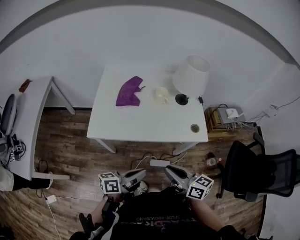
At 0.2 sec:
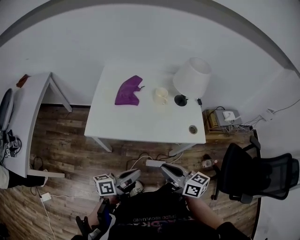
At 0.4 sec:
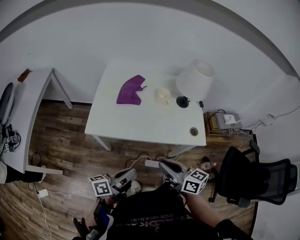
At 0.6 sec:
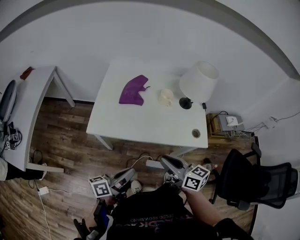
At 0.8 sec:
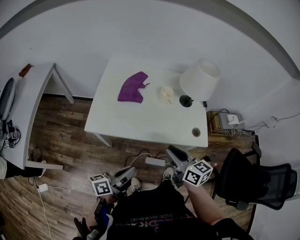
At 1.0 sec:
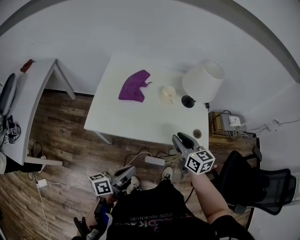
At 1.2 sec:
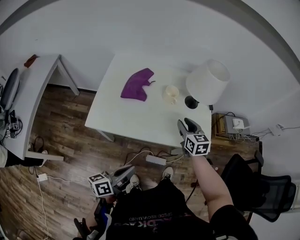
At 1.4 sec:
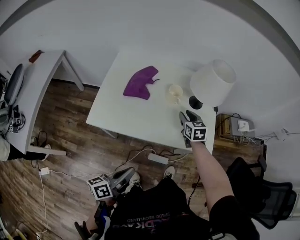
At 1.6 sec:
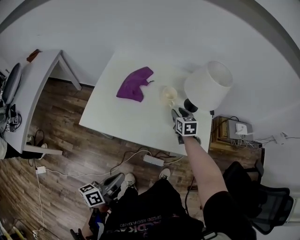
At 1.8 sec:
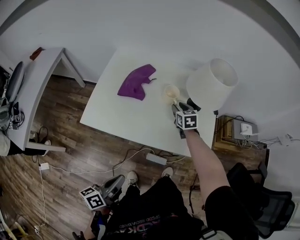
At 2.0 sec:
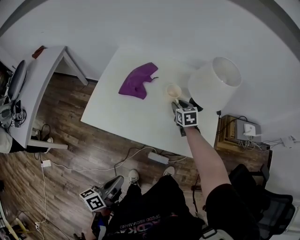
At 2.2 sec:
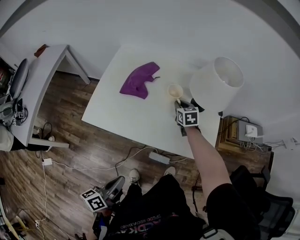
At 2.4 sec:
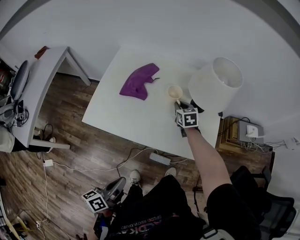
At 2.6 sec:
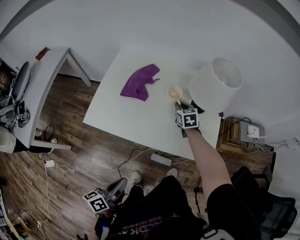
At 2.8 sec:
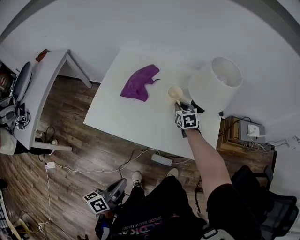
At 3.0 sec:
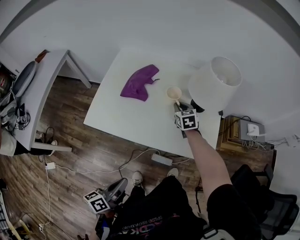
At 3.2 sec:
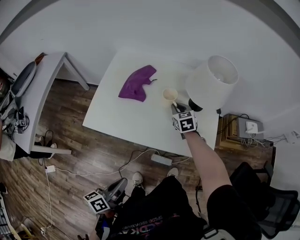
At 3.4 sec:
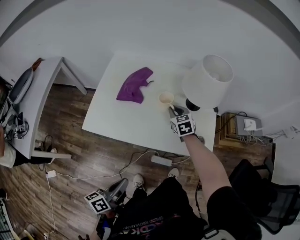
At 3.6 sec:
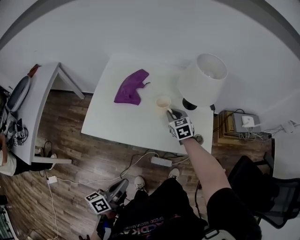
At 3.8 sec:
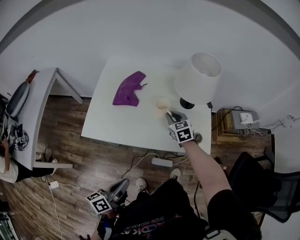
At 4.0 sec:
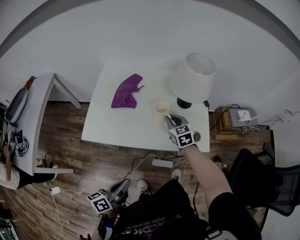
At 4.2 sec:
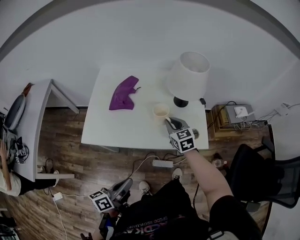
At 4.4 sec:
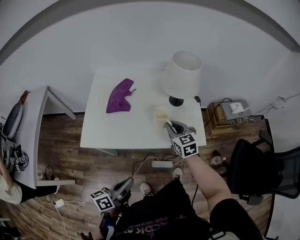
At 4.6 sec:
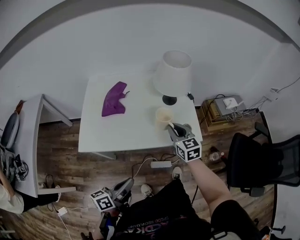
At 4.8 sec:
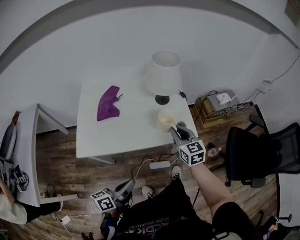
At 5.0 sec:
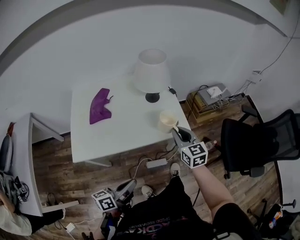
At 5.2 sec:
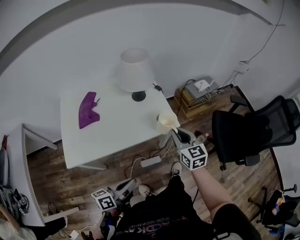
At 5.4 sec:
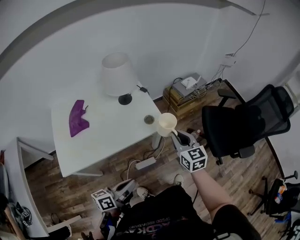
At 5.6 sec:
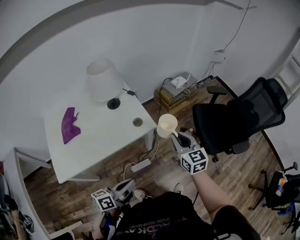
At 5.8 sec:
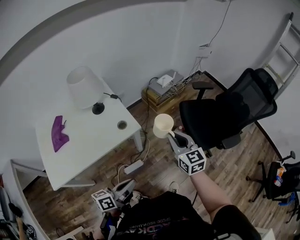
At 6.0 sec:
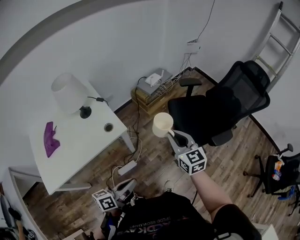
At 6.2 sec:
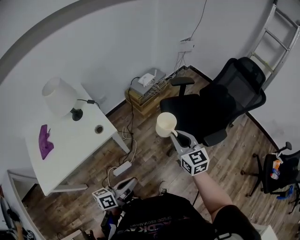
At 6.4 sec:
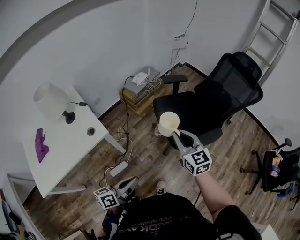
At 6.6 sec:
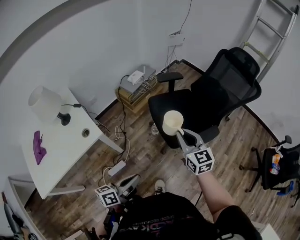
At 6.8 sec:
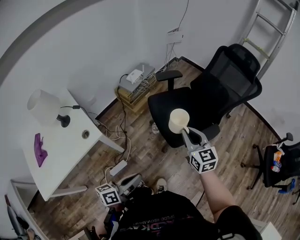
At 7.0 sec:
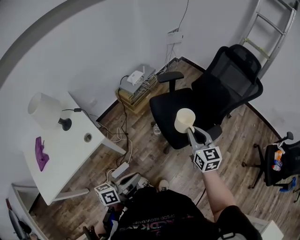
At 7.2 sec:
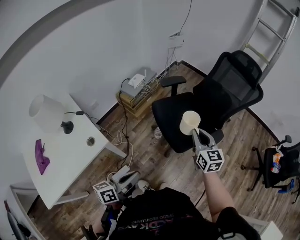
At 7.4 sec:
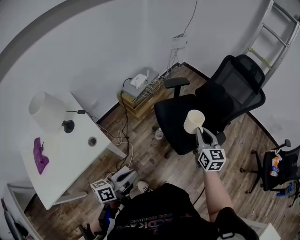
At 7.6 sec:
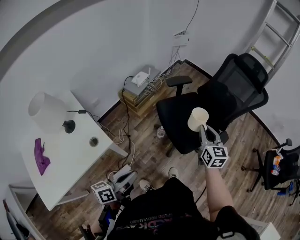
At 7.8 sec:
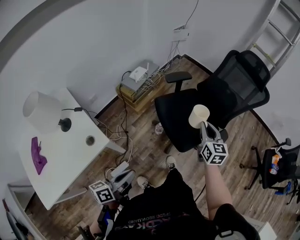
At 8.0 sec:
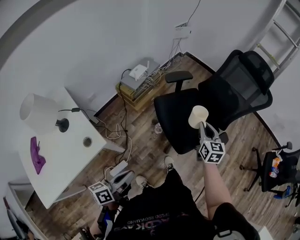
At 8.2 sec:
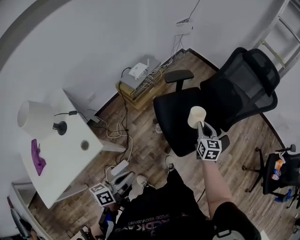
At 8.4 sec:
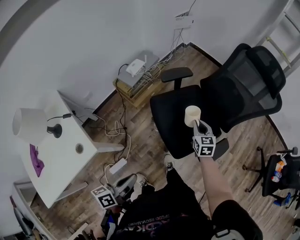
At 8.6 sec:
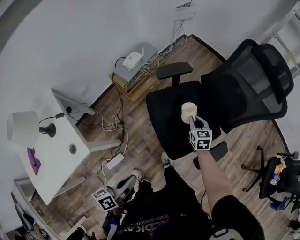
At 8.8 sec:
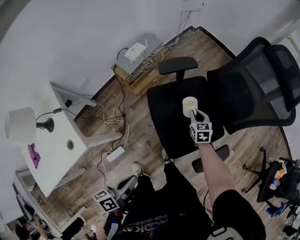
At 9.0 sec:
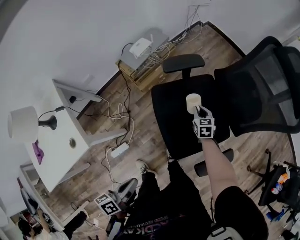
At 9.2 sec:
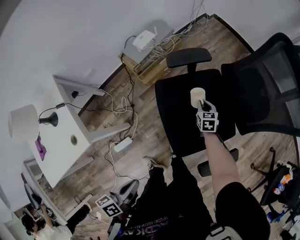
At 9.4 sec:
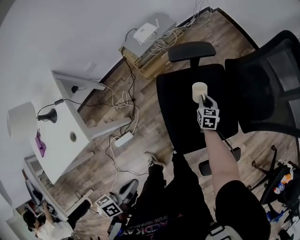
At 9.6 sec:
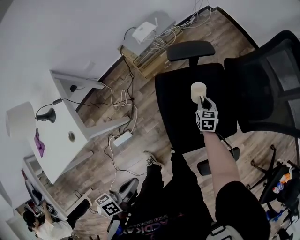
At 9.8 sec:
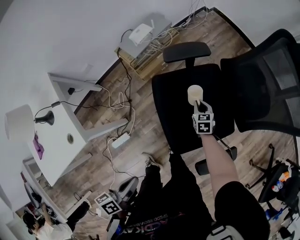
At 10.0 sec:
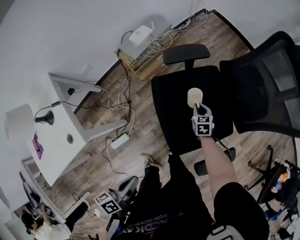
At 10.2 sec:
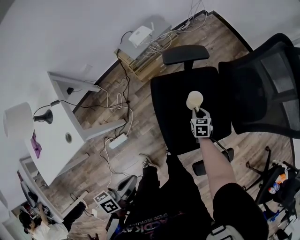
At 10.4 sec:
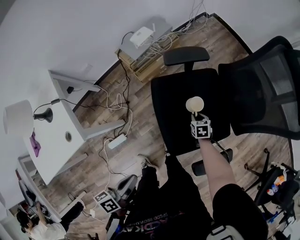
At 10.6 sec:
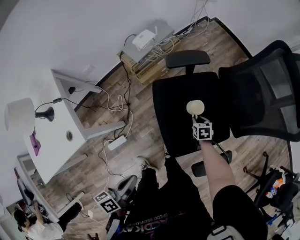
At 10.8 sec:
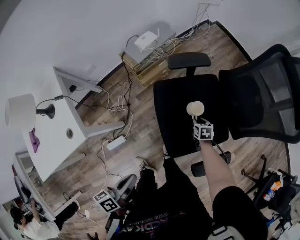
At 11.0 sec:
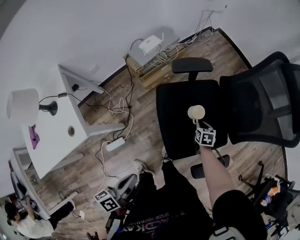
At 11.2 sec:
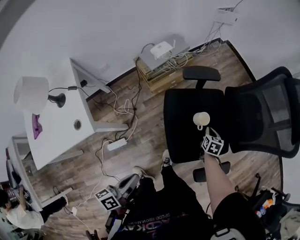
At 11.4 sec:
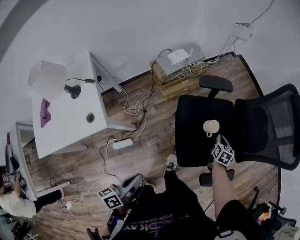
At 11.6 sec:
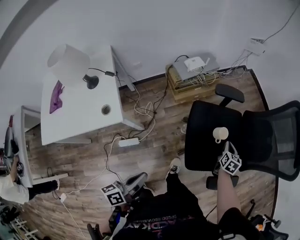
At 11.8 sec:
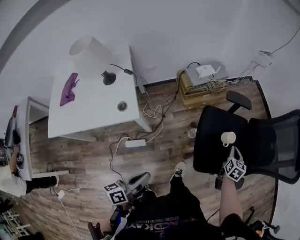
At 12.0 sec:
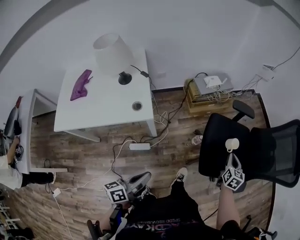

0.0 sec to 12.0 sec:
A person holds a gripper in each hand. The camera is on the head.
0.0 sec to 1.6 sec: The left gripper changes its angle by approximately 30 degrees; the right gripper is displaced forward by approximately 40 cm, rotates about 40 degrees, and opens its fingers.
1.6 sec to 3.0 sec: The right gripper shifts by roughly 5 cm, and closes.
3.0 sec to 4.4 sec: The right gripper travels backward and upward by approximately 20 cm. Meanwhile the left gripper turns by about 20 degrees.
4.4 sec to 6.0 sec: The right gripper changes place by roughly 50 cm, and swivels roughly 40 degrees. The left gripper changes place by approximately 30 cm, and swivels roughly 40 degrees.
6.0 sec to 7.6 sec: The left gripper shifts some 15 cm forward, and travels to the right and back again, about 15 cm each way. The right gripper goes approximately 25 cm to the right and forward, and turns by some 30 degrees.
7.6 sec to 9.0 sec: The left gripper travels forward, to the right and downward by some 20 cm, and rotates approximately 30 degrees. The right gripper moves downward and forward, about 40 cm, and tips its fingers downward by about 30 degrees.
9.0 sec to 10.4 sec: The right gripper shifts approximately 10 cm downward and backward.
10.4 sec to 12.0 sec: The right gripper moves upward, some 25 cm, and turns by some 30 degrees; the left gripper travels backward and to the left by some 20 cm, and changes its angle by about 20 degrees.

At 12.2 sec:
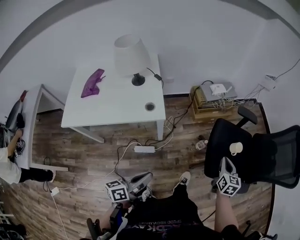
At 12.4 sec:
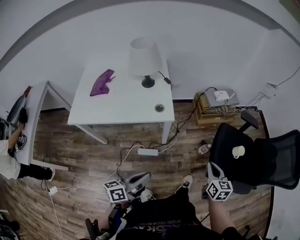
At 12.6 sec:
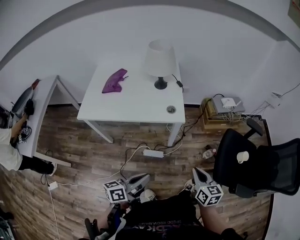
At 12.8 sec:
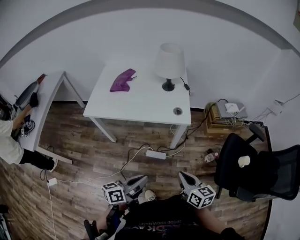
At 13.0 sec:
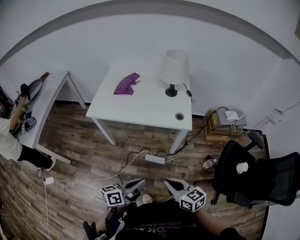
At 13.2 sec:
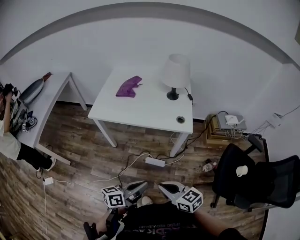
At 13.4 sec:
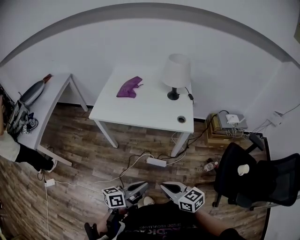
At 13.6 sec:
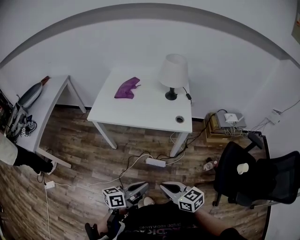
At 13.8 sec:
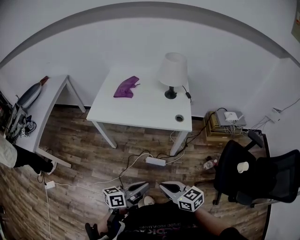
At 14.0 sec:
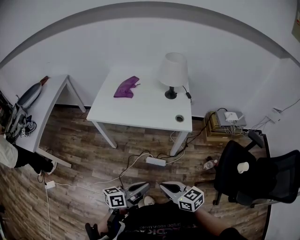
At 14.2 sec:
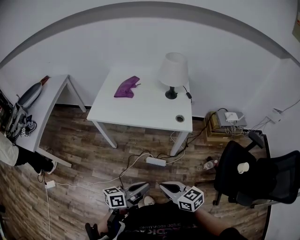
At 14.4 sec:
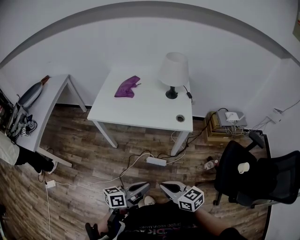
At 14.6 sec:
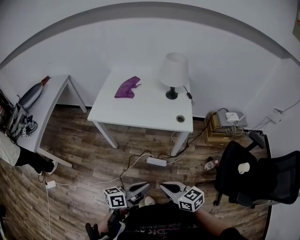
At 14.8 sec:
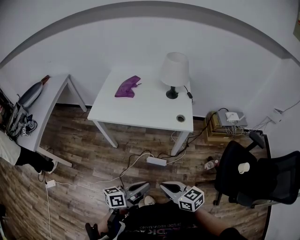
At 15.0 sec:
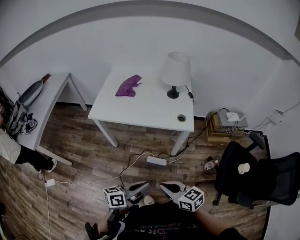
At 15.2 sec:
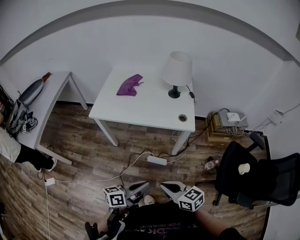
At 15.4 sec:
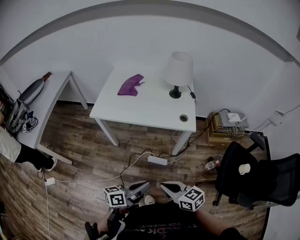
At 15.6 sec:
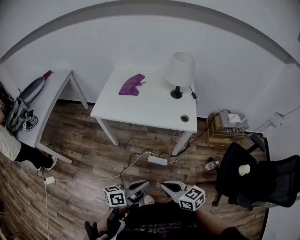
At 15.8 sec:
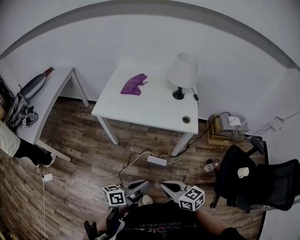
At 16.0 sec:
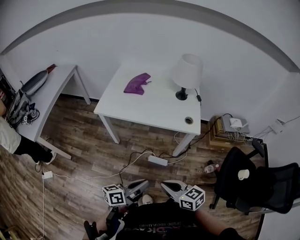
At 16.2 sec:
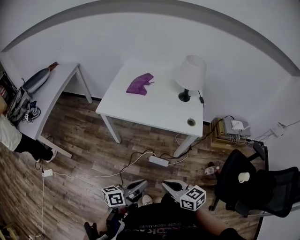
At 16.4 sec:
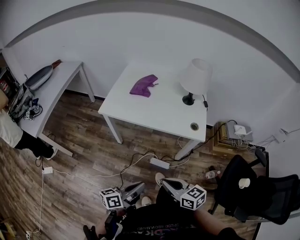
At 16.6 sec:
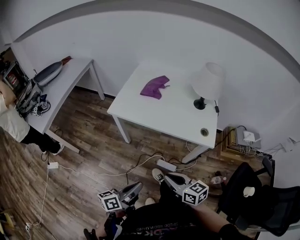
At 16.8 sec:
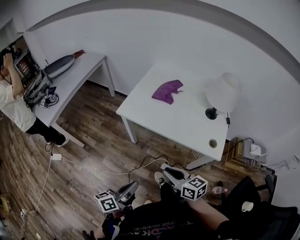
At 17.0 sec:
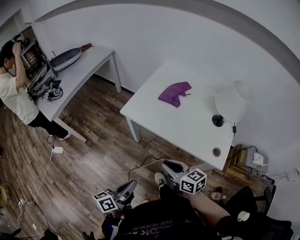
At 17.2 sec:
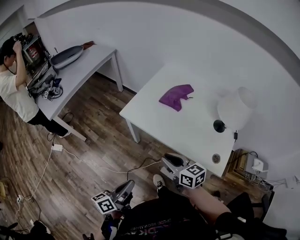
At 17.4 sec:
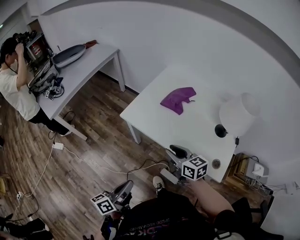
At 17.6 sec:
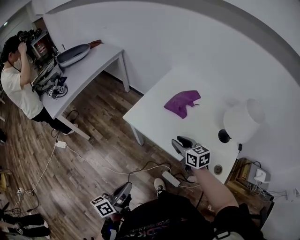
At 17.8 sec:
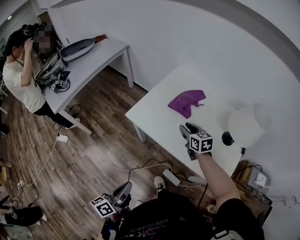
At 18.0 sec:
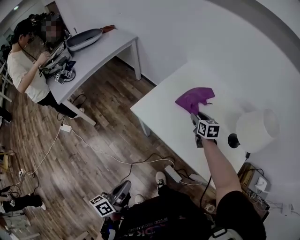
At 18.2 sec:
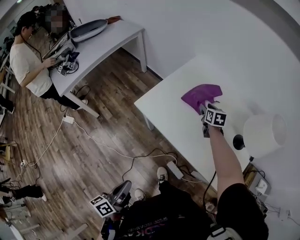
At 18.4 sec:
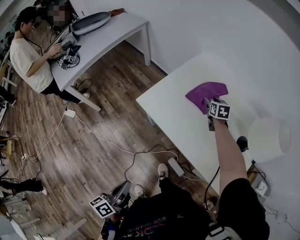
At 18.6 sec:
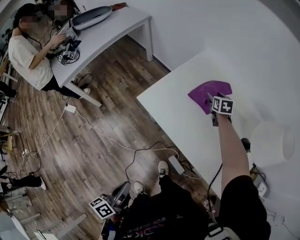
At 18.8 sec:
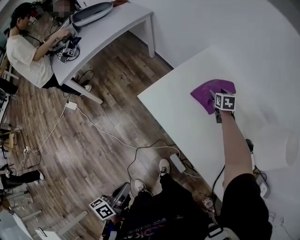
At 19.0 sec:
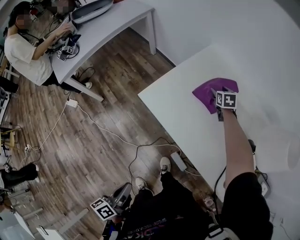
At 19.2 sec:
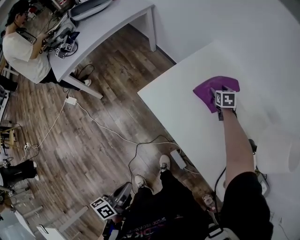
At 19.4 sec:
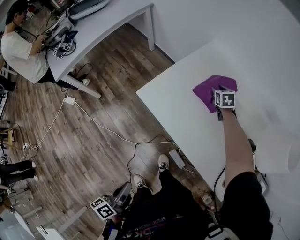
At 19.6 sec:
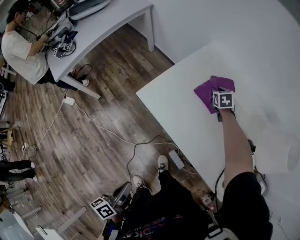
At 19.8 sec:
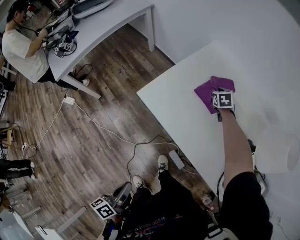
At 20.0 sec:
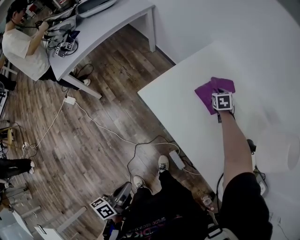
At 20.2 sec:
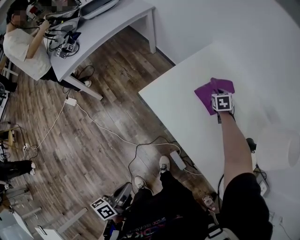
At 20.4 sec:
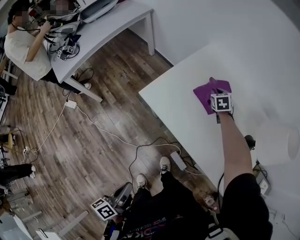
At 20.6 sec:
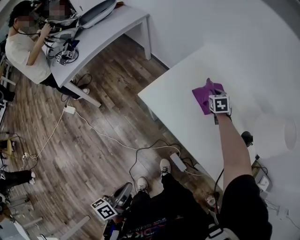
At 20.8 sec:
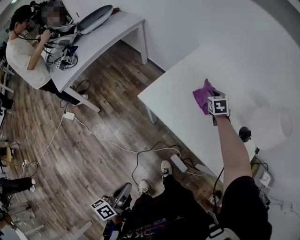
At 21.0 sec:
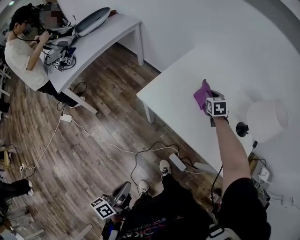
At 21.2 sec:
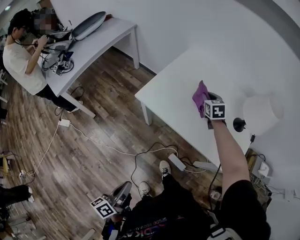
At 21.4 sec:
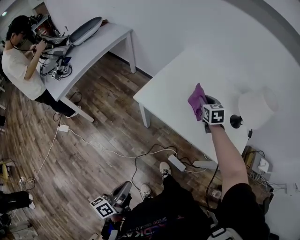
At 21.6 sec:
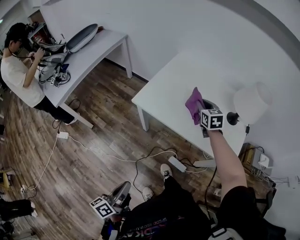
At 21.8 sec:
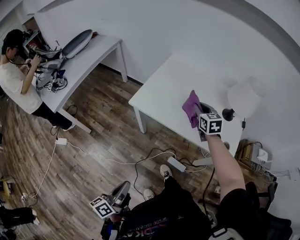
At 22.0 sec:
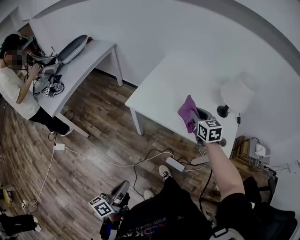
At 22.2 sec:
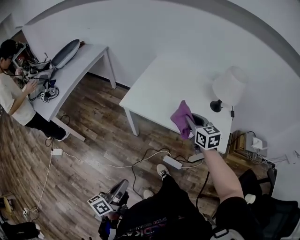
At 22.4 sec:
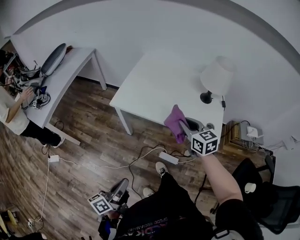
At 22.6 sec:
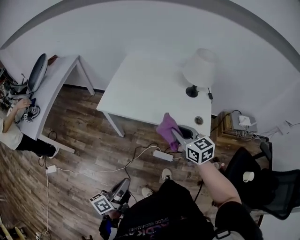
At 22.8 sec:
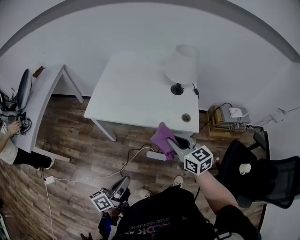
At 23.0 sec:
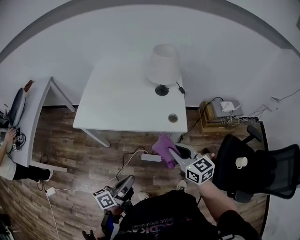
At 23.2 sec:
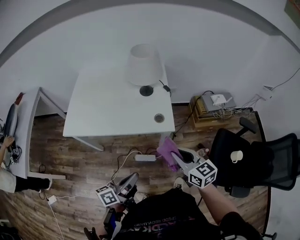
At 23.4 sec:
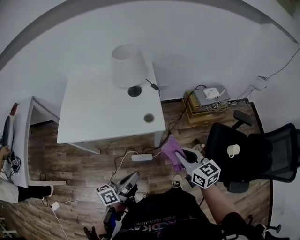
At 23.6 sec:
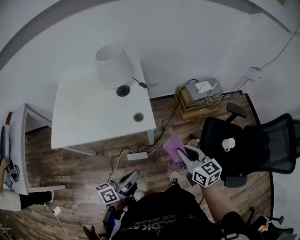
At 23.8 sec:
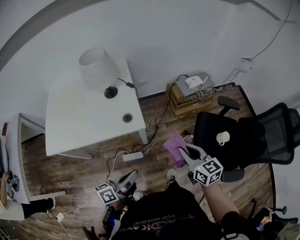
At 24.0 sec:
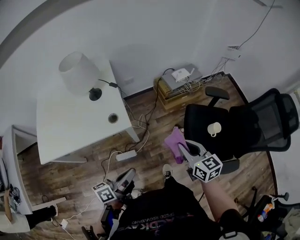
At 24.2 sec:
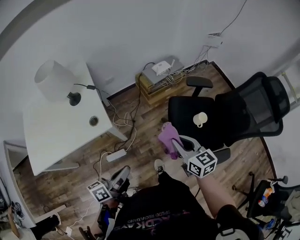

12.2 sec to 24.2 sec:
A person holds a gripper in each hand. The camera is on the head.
12.2 sec to 13.8 sec: The right gripper shifts by some 50 cm, and rotates roughly 70 degrees; the left gripper shifts by roughly 15 cm.
13.8 sec to 15.2 sec: The two grippers keep their place.
15.2 sec to 16.6 sec: The left gripper is displaced to the left and forward by about 10 cm, and turns by roughly 20 degrees. Meanwhile the right gripper goes about 10 cm forward.
16.6 sec to 18.2 sec: The left gripper heads forward, covering some 10 cm, and rotates approximately 40 degrees; the right gripper is displaced forward by roughly 60 cm, turns by about 30 degrees, and opens its fingers.
18.2 sec to 19.8 sec: The right gripper goes roughly 10 cm forward and downward, changes its angle by roughly 30 degrees, and closes up.
19.8 sec to 21.2 sec: The left gripper shifts about 5 cm backward. The right gripper moves backward and upward, about 20 cm.
21.2 sec to 22.6 sec: The left gripper ends up about 5 cm from where it was, and changes its angle by roughly 30 degrees, while the right gripper shifts approximately 35 cm backward, and rotates approximately 20 degrees.
22.6 sec to 24.2 sec: Both grippers are carried about 40 cm. The left gripper rotates approximately 50 degrees. Meanwhile the right gripper swivels roughly 50 degrees.
